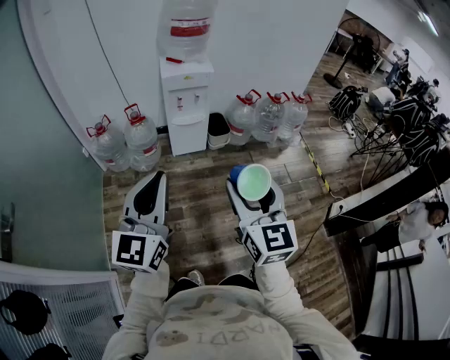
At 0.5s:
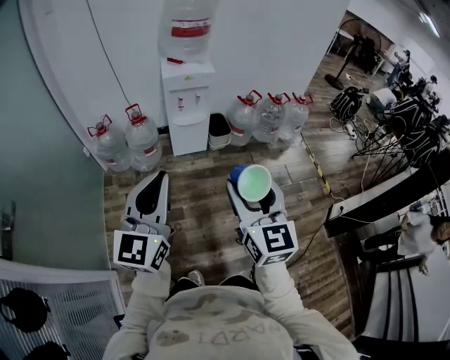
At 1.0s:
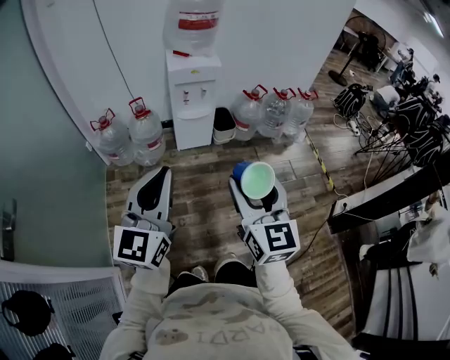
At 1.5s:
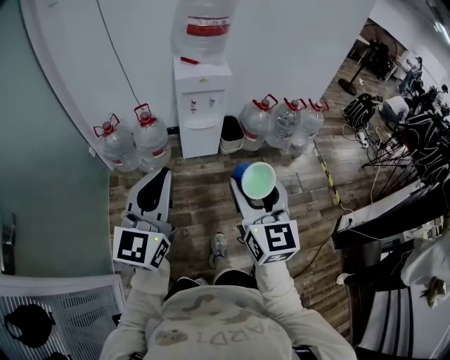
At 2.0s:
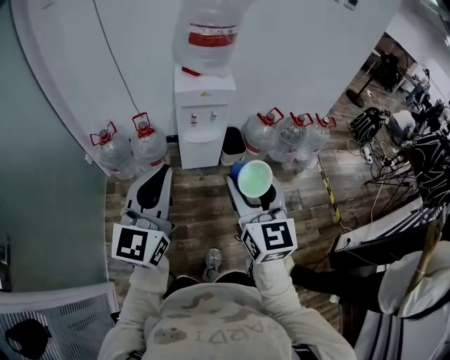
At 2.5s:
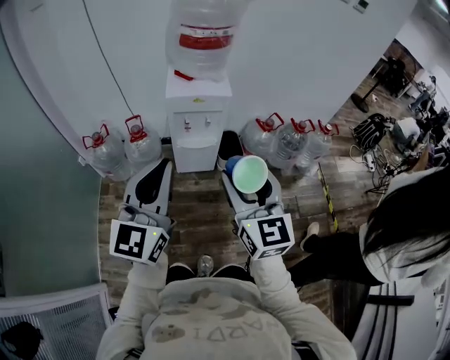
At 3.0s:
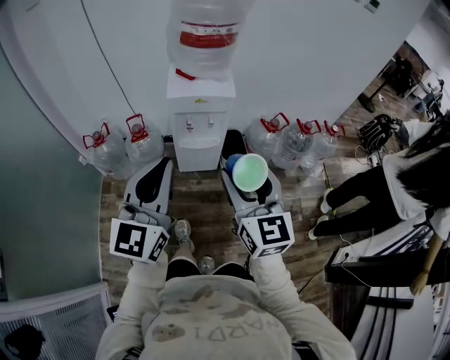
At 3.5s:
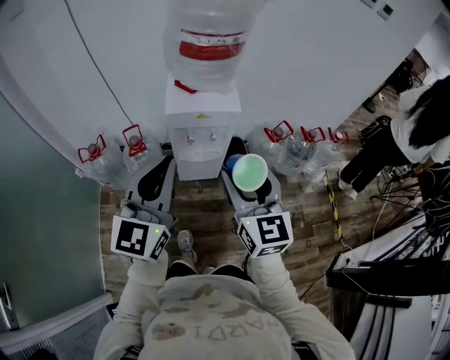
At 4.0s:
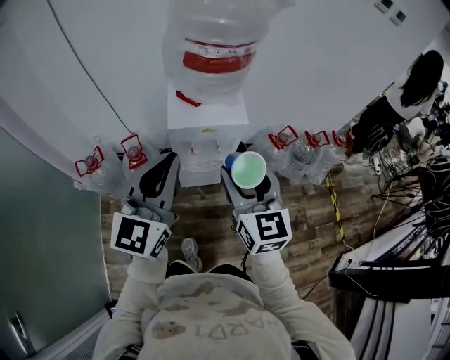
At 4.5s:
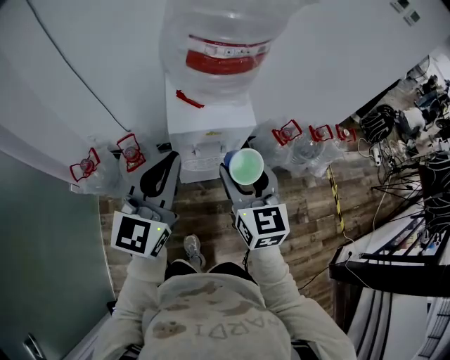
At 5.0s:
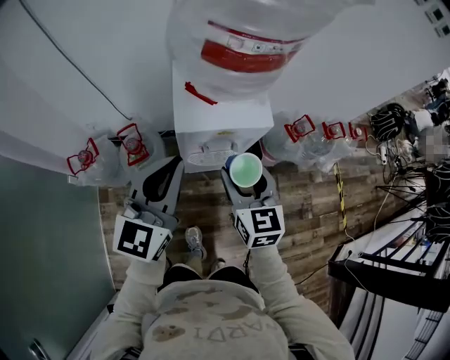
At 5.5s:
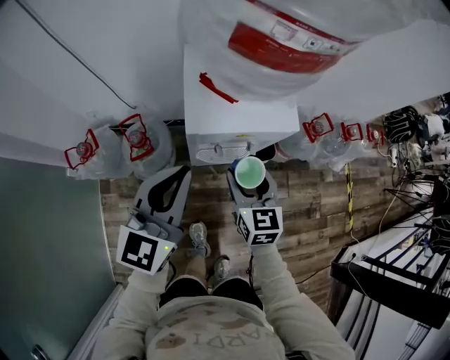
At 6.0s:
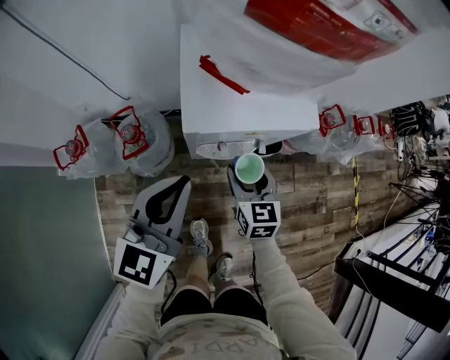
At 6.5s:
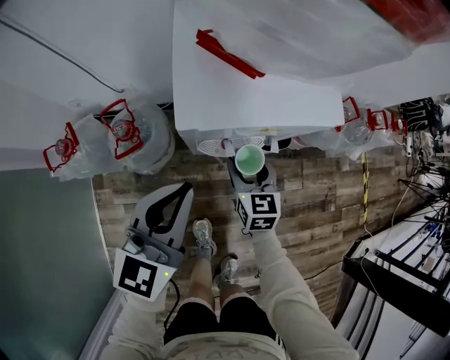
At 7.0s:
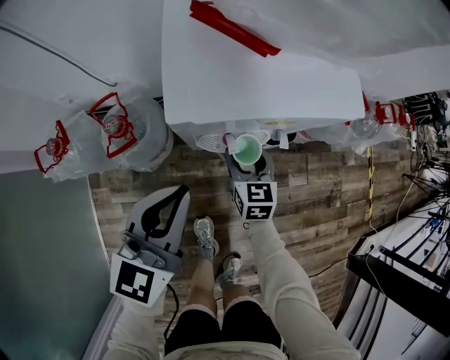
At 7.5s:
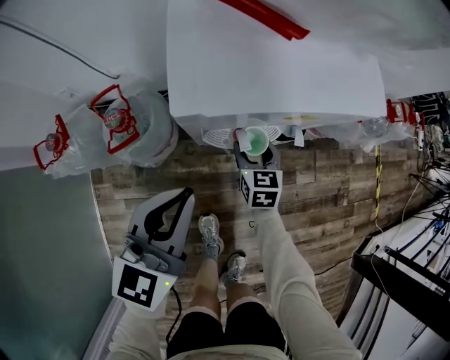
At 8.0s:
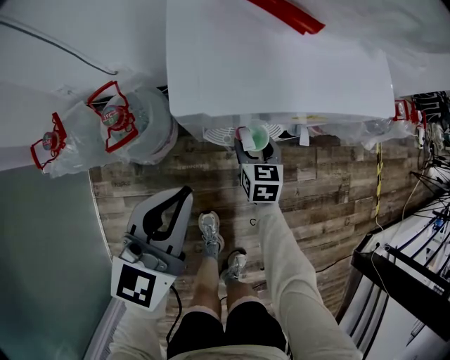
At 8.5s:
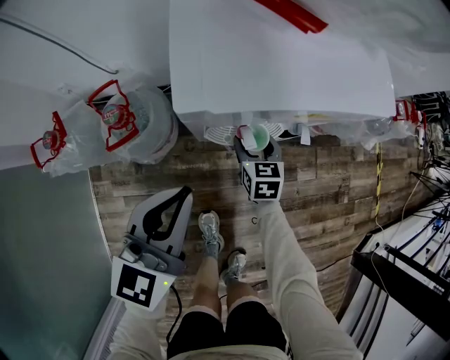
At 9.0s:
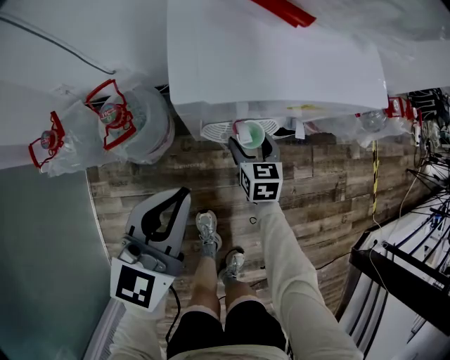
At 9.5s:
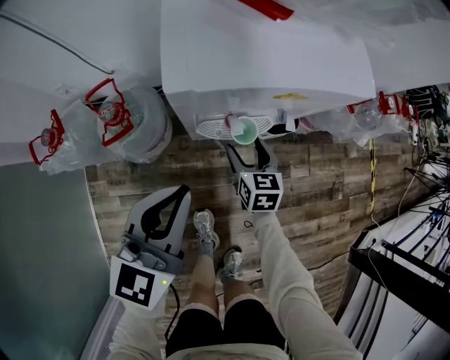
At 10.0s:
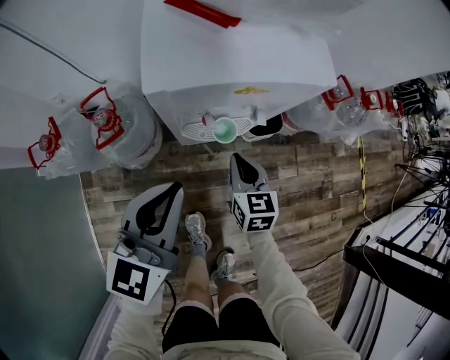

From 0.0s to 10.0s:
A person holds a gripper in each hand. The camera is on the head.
From 0.0s to 2.0s: The grippers both shift forward by some 20 cm.
From 2.0s to 4.0s: The grippers both shift forward by some 35 cm.
From 4.0s to 6.0s: Both grippers travel together downward and forward, about 35 cm. The right gripper swivels about 20 degrees.
From 6.0s to 8.0s: The grippers both shift downward by roughly 20 cm.
From 8.0s to 10.0s: The left gripper travels upward by approximately 5 cm. Meanwhile the right gripper is displaced upward and backward by approximately 15 cm, and closes up.

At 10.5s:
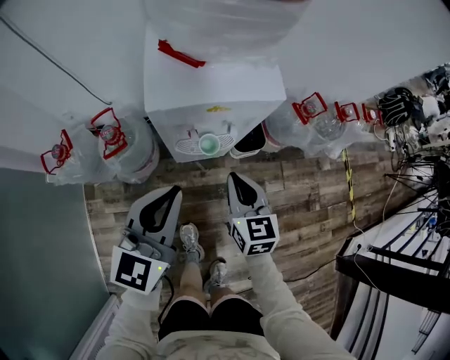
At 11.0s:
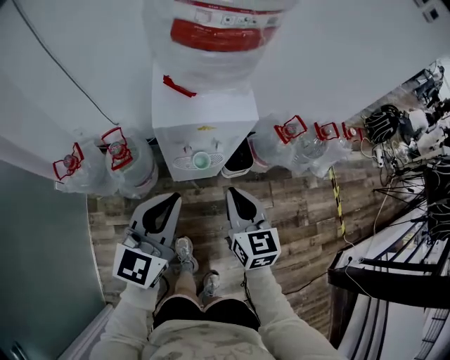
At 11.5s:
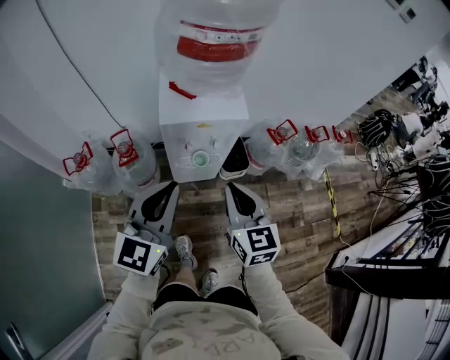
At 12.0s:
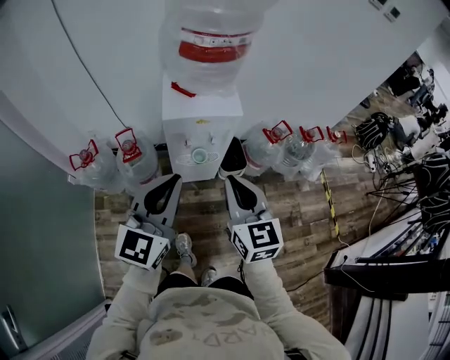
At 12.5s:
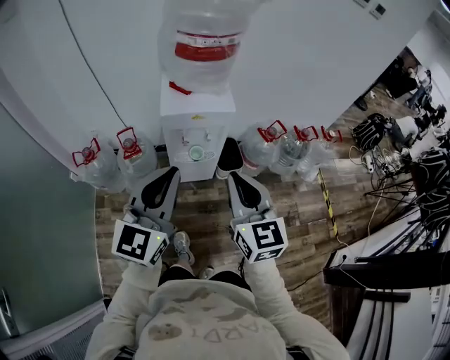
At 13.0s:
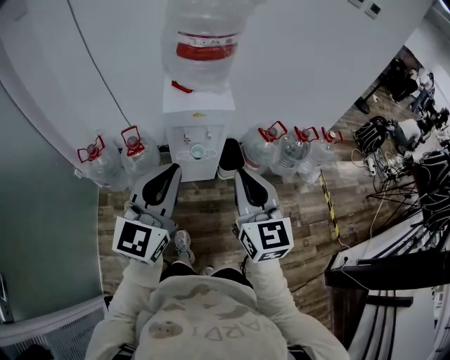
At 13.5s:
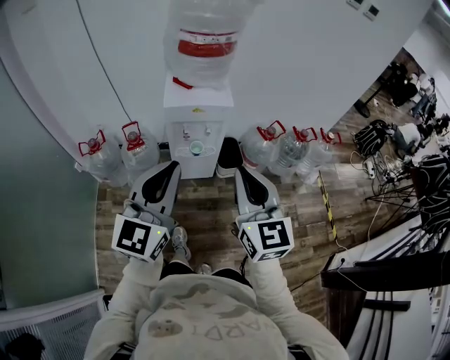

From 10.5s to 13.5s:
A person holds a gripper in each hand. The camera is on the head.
From 10.5s to 12.0s: Both grippers travel together upward and backward, about 30 cm.
From 12.0s to 13.5s: The right gripper is displaced backward, upward and to the right by approximately 15 cm, while the left gripper is displaced backward and upward by roughly 15 cm.

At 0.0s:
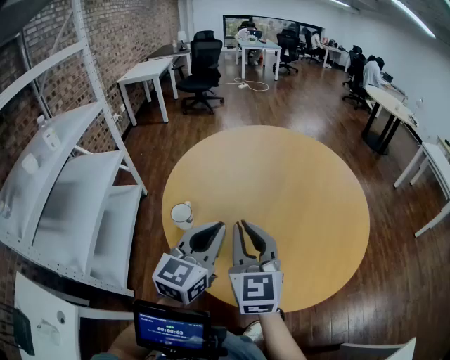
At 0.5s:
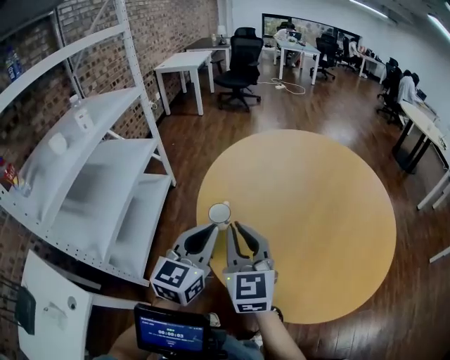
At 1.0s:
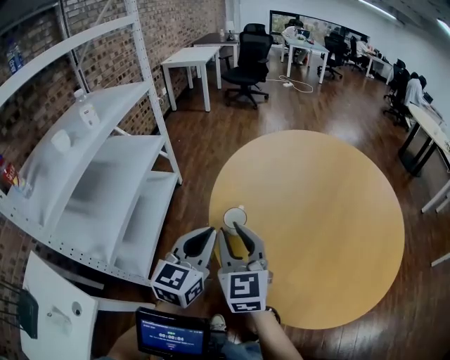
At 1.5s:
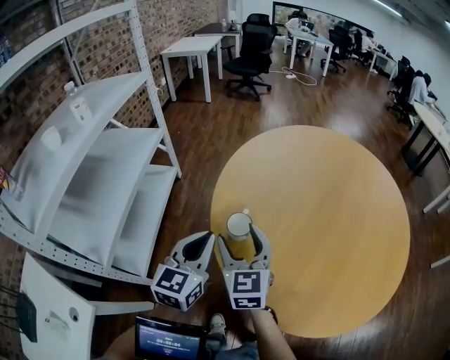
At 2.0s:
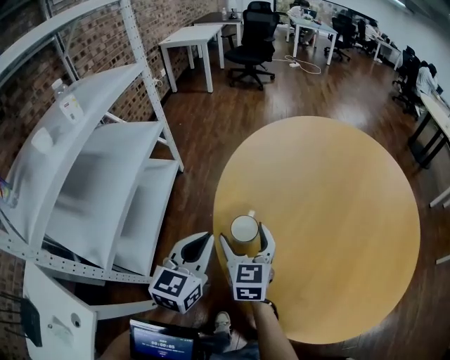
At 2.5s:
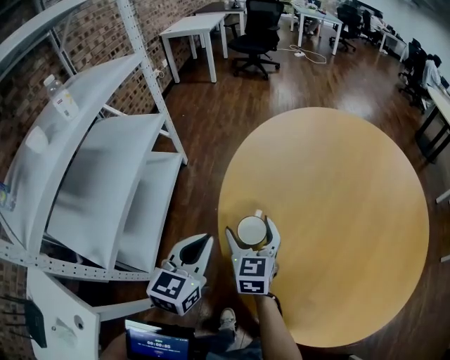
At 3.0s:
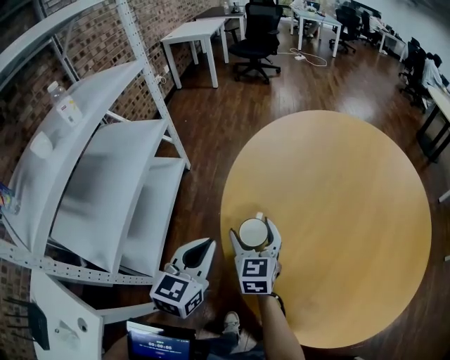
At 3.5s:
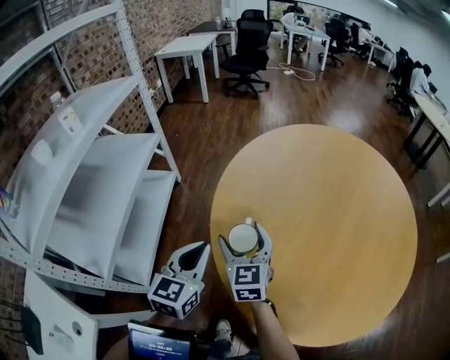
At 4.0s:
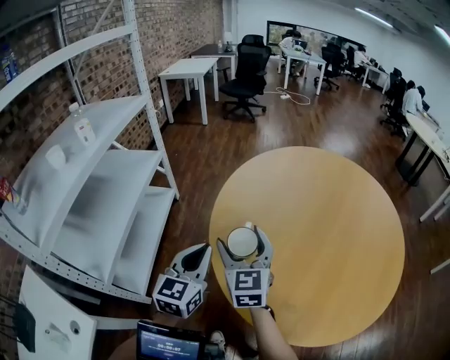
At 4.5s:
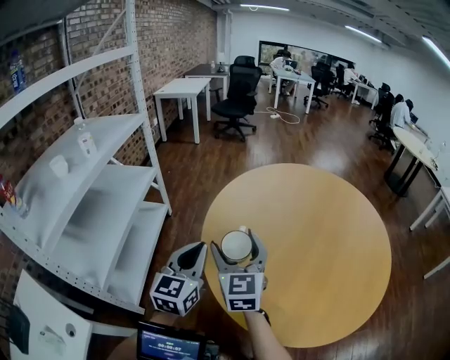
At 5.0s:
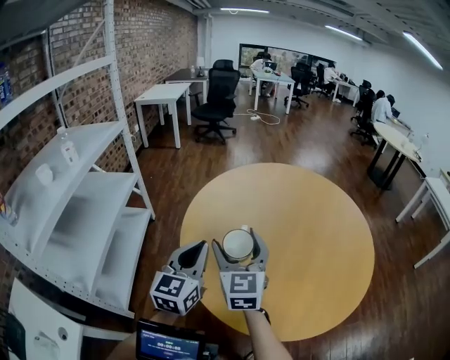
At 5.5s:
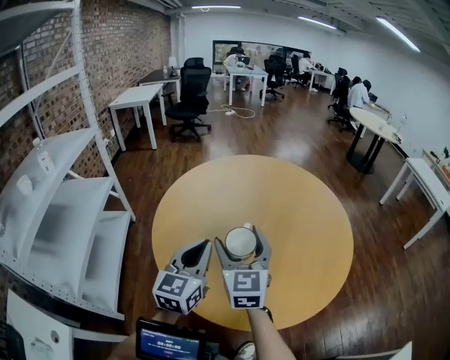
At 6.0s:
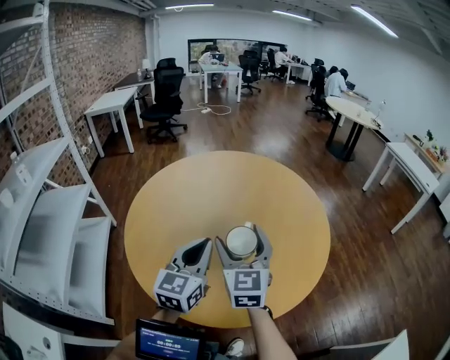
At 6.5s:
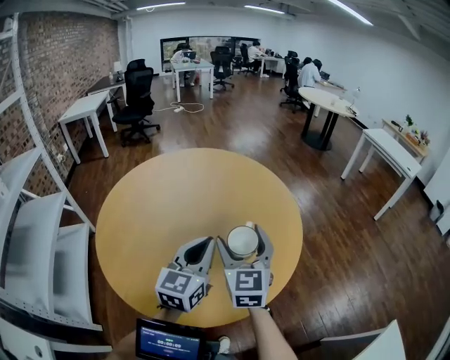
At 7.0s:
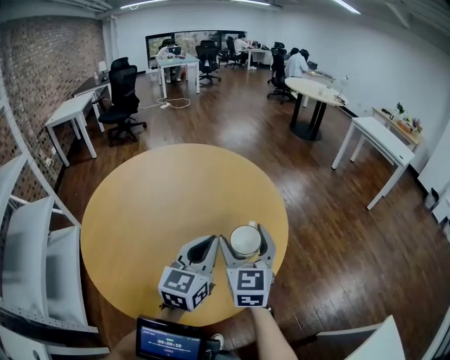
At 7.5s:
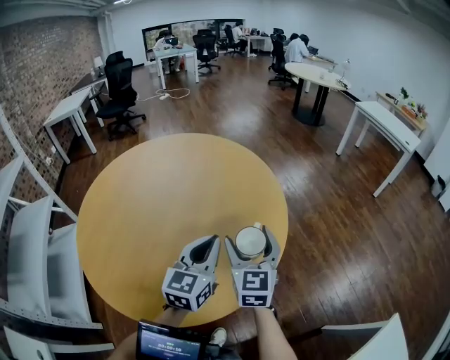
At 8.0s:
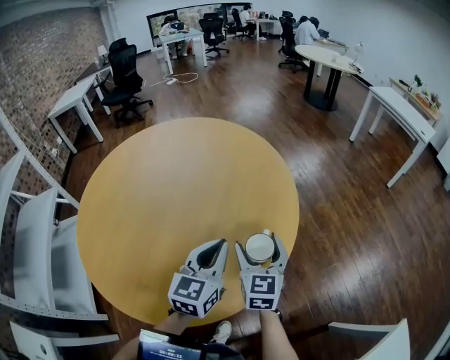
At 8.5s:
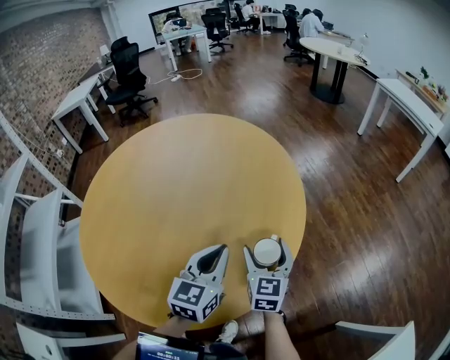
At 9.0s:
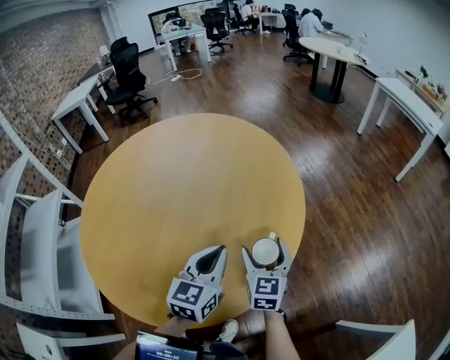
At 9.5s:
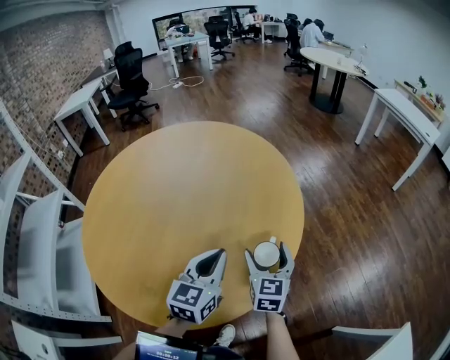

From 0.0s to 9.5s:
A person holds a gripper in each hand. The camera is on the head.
From 0.0s to 2.0s: The left gripper shifts some 25 cm to the left and downward. Meanwhile the right gripper moves to the left, downward and forward, approximately 30 cm, and opens its fingers.
From 2.0s to 4.0s: The right gripper moves upward, roughly 10 cm.
From 4.0s to 5.5s: The grippers both shift to the right by about 20 cm.
From 5.5s to 7.5s: The two grippers go roughly 35 cm to the right. The right gripper turns by some 20 degrees.
From 7.5s to 9.5s: The right gripper heads downward, covering approximately 15 cm; the left gripper travels downward by about 5 cm.

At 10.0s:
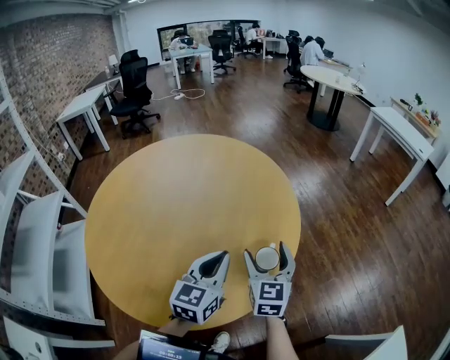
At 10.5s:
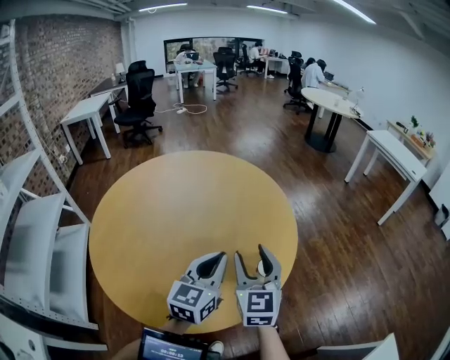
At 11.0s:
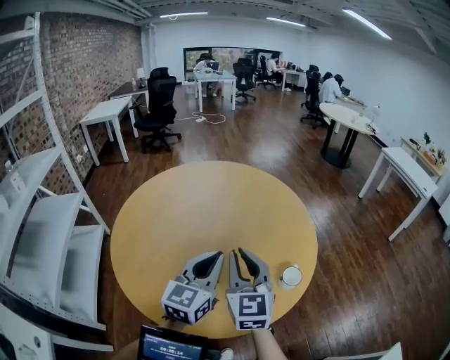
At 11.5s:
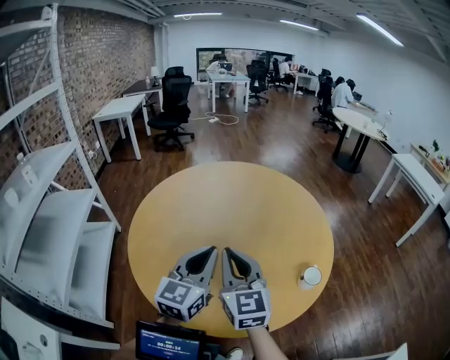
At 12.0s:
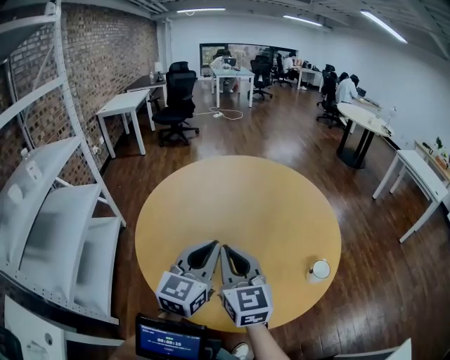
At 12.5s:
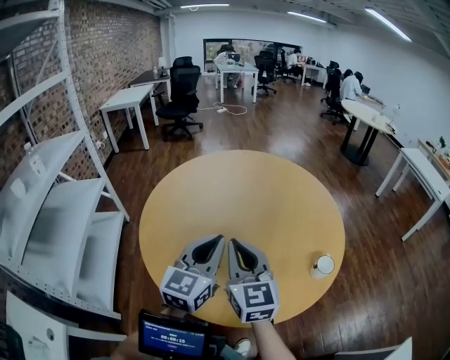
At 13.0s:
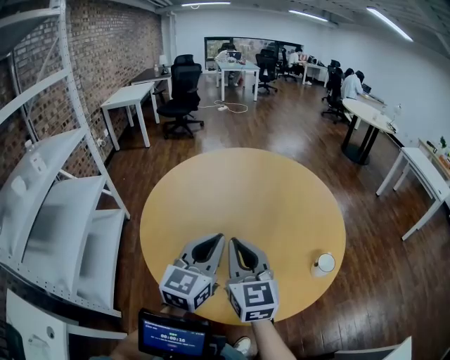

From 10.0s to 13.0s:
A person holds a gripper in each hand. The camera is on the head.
From 10.0s to 11.5s: Both grippers travel together to the left and upward, roughly 30 cm. The right gripper turns by approximately 30 degrees, and closes its fingers.
From 11.5s to 13.0s: There are only small adjustments of the grippers.

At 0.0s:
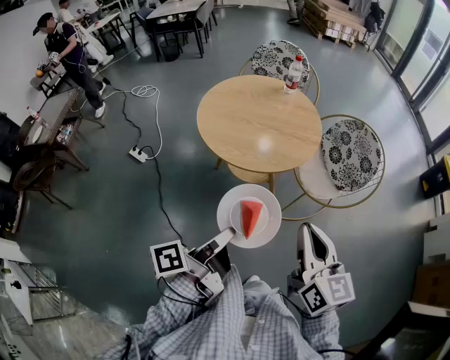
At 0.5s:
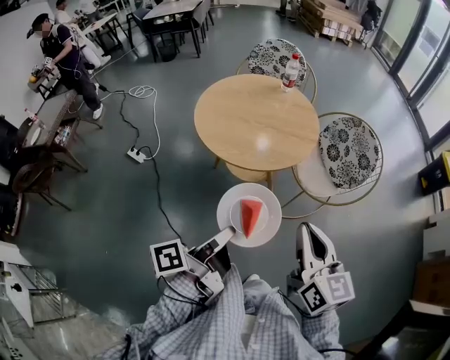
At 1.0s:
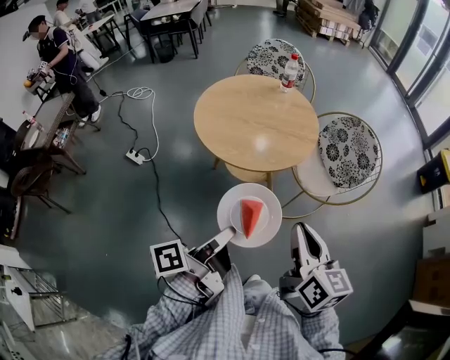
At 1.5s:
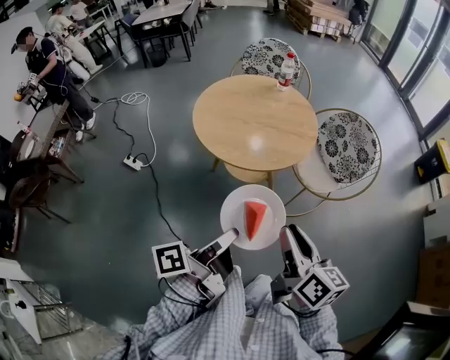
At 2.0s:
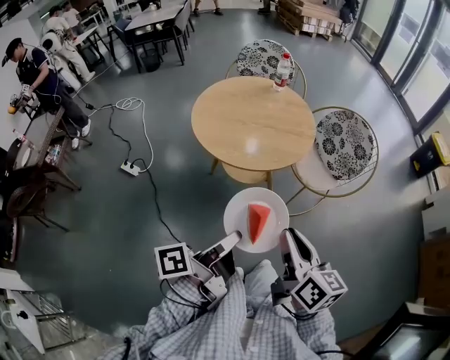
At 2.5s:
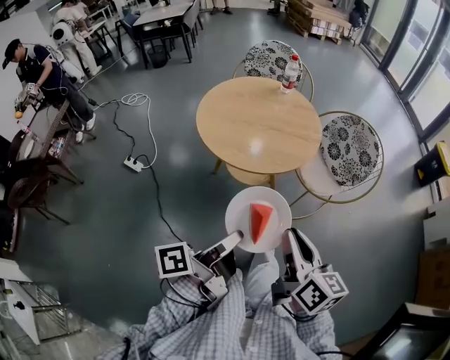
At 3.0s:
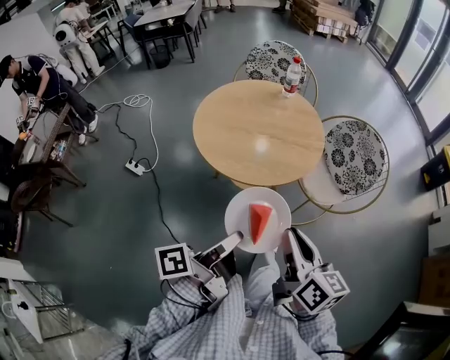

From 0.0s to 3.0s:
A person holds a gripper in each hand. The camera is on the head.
From 0.0s to 1.5s: The right gripper moves roughly 5 cm, and turns by about 30 degrees.
From 1.5s to 3.0s: The right gripper moves about 5 cm.
